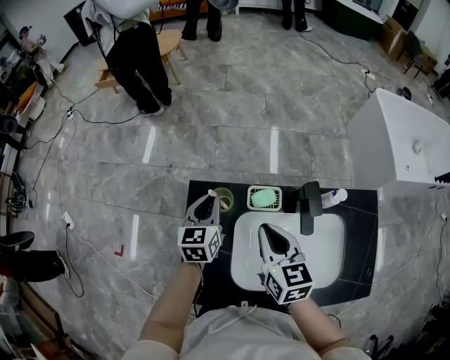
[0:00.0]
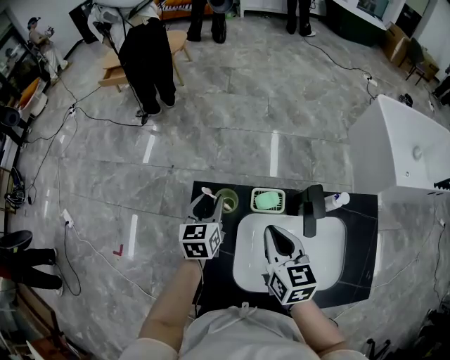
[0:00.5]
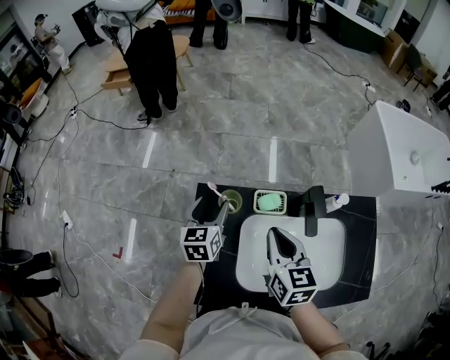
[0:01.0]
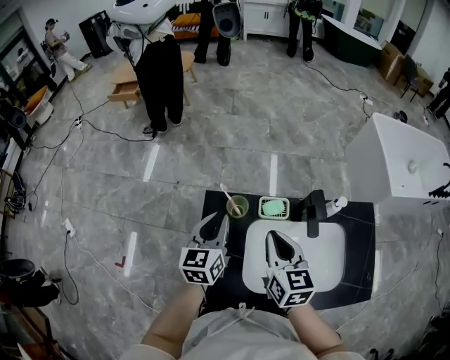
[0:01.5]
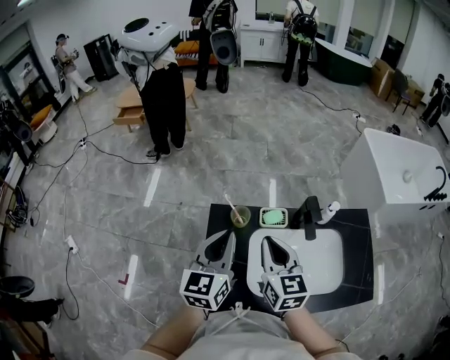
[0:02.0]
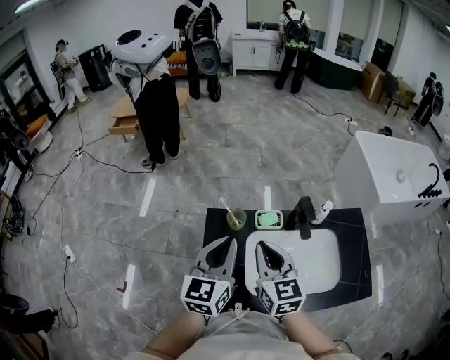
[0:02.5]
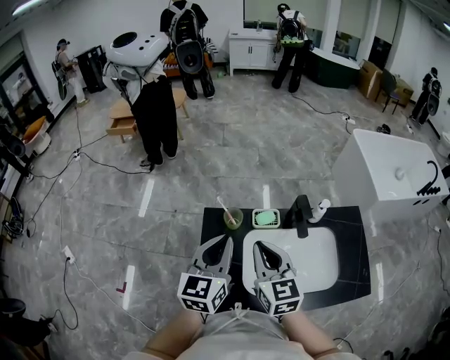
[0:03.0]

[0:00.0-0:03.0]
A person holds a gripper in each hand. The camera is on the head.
0.0 to 1.5 s: The left gripper travels upward and backward by approximately 10 cm, and opens, then closes once more.
1.5 to 3.0 s: The left gripper moves upward and backward, about 15 cm, while the right gripper moves upward, roughly 5 cm.

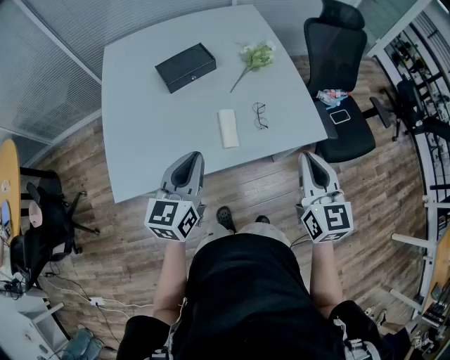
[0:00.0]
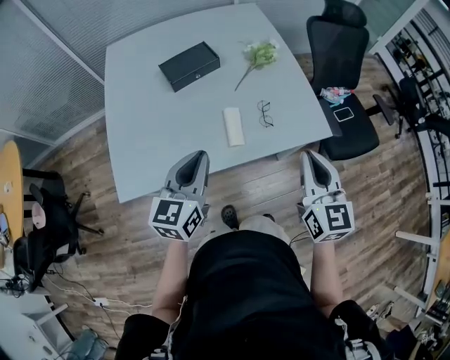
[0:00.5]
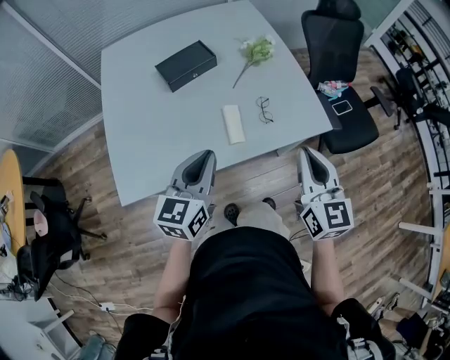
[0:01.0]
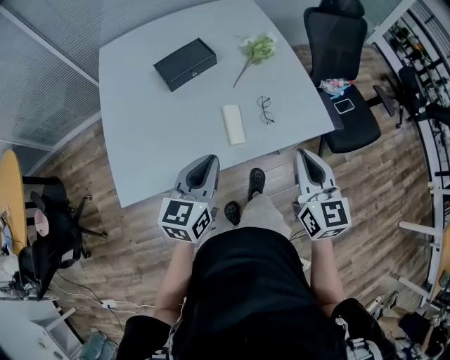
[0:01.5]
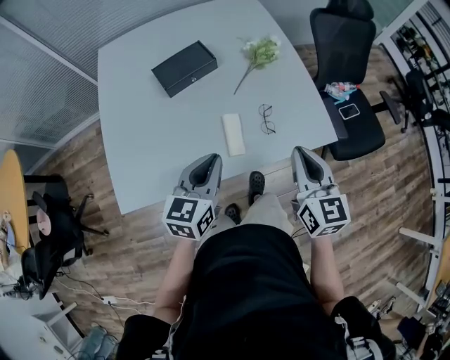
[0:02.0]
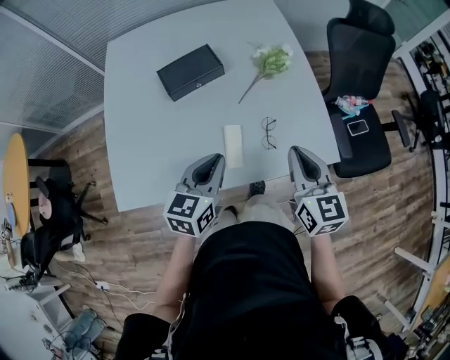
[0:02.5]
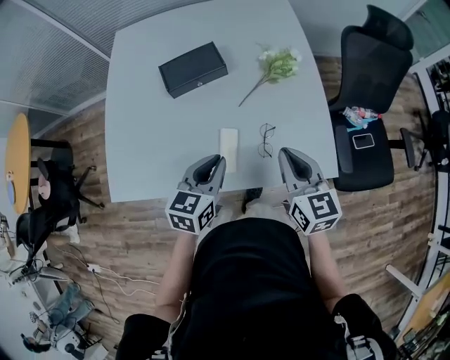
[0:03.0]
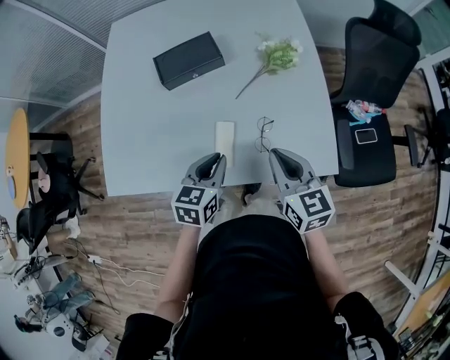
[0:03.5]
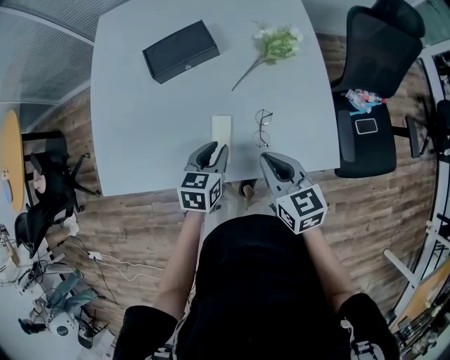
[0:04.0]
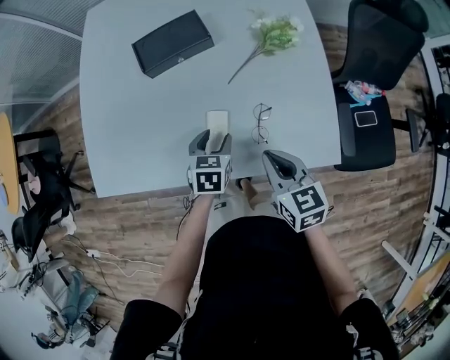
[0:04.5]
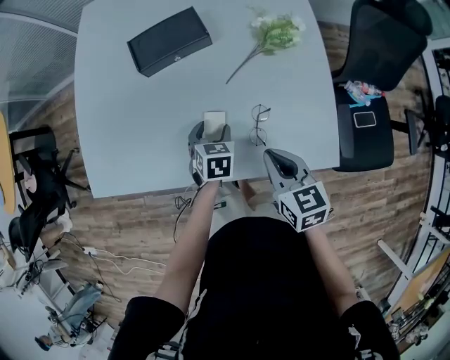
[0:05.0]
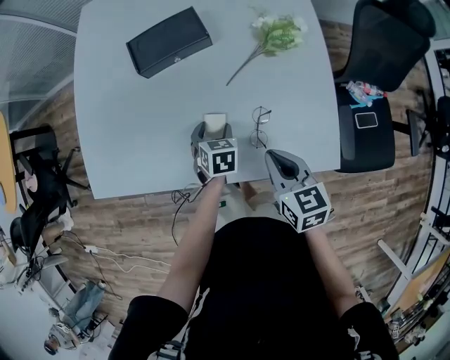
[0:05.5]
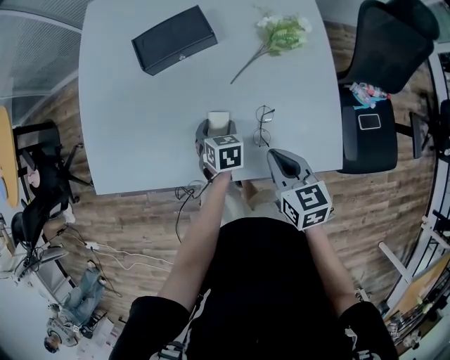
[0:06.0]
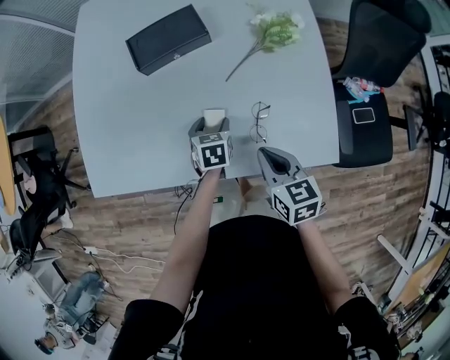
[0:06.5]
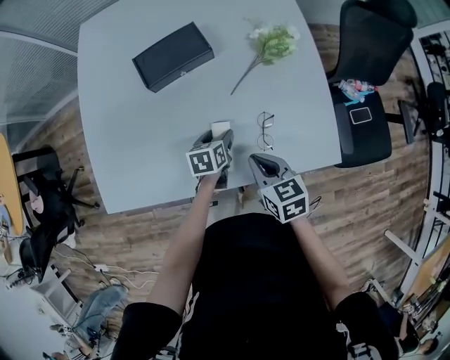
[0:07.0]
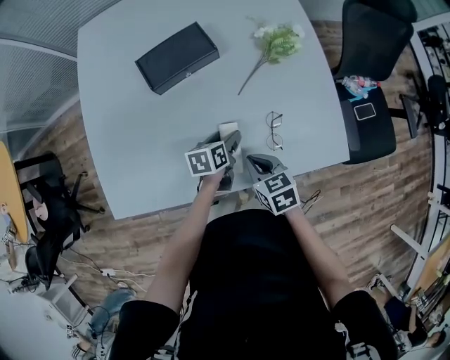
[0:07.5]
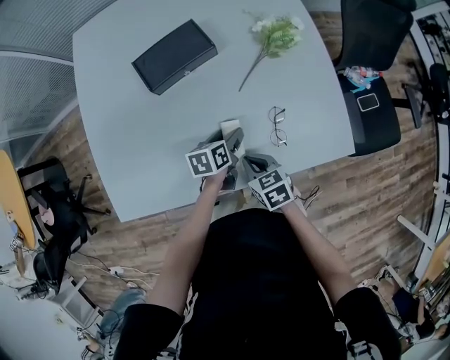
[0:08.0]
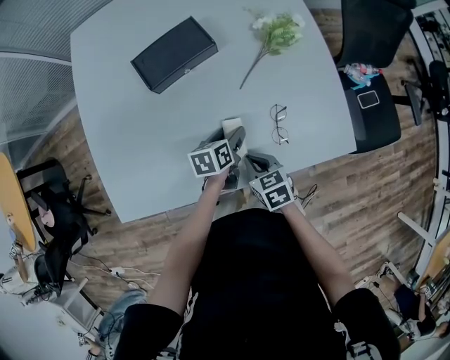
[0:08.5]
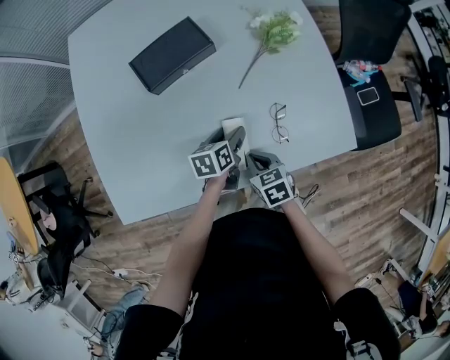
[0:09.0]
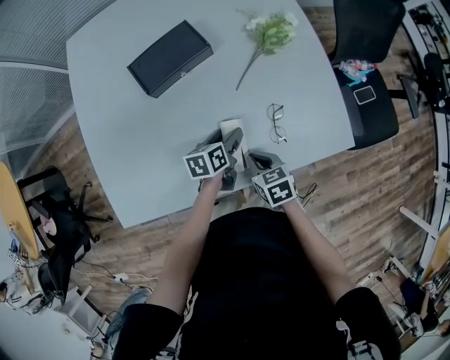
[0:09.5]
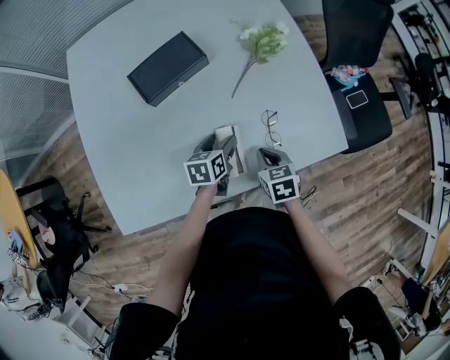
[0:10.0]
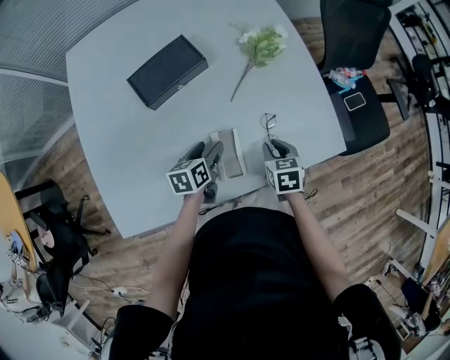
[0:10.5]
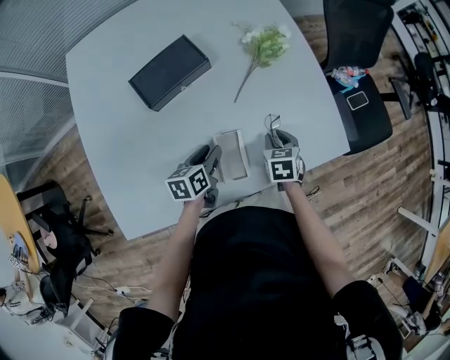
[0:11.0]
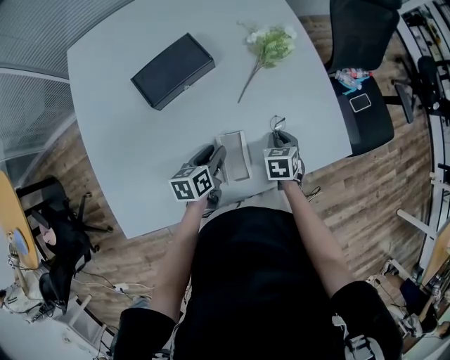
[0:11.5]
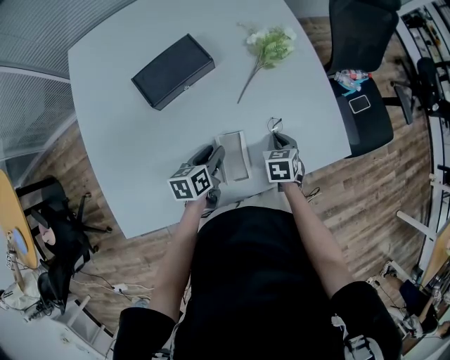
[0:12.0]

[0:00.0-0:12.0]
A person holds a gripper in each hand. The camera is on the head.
0.0 to 2.0 s: Both grippers travel together forward, some 5 cm.
2.0 to 4.0 s: The right gripper heads downward and forward, covering roughly 15 cm, and changes its angle by some 30 degrees. The left gripper travels downward, forward and to the right by roughly 20 cm, and changes its angle by roughly 20 degrees.
4.0 to 6.0 s: The left gripper travels downward and forward by about 15 cm, rotates about 30 degrees, and opens; the right gripper heads downward, covering approximately 5 cm.
6.0 to 8.0 s: The left gripper swivels some 40 degrees. The right gripper heads to the left and downward, covering some 15 cm.
8.0 to 10.0 s: The right gripper shifts some 5 cm to the right.
10.0 to 12.0 s: The right gripper travels forward by roughly 10 cm, and opens and closes again.

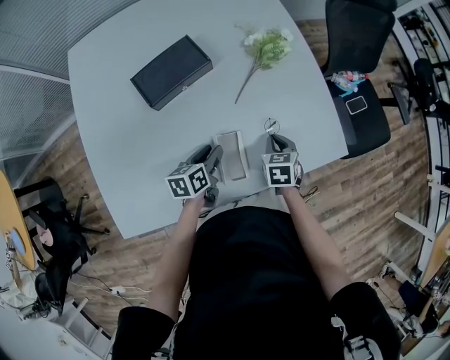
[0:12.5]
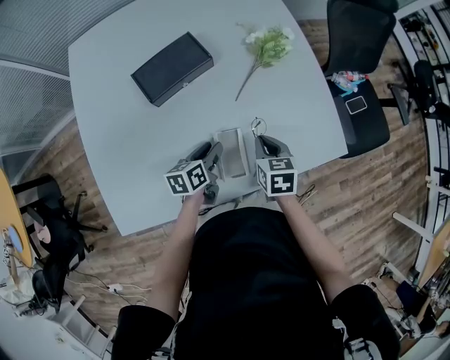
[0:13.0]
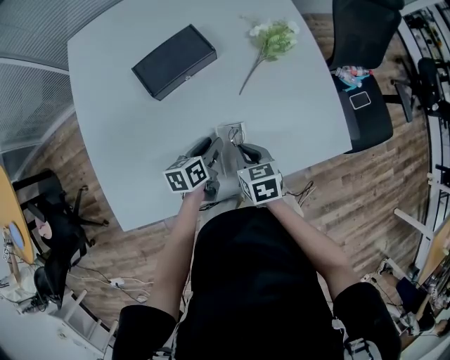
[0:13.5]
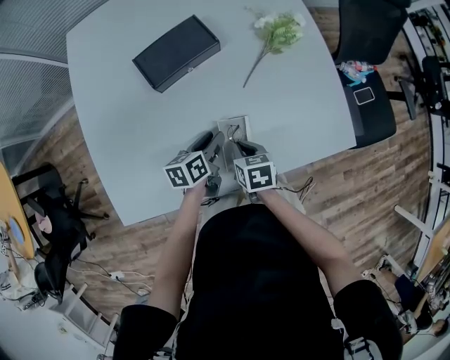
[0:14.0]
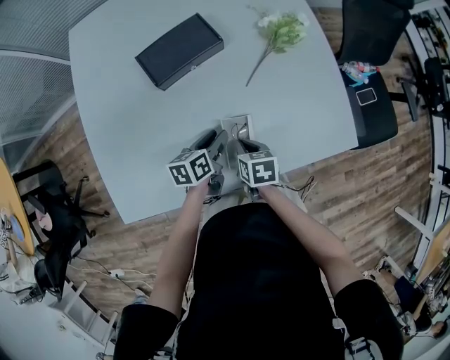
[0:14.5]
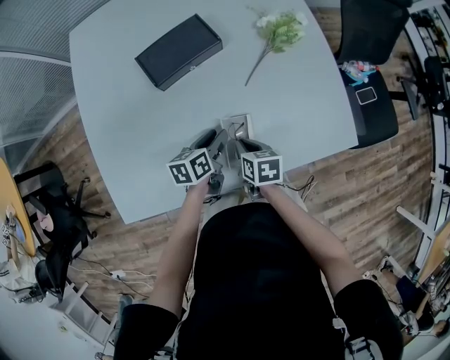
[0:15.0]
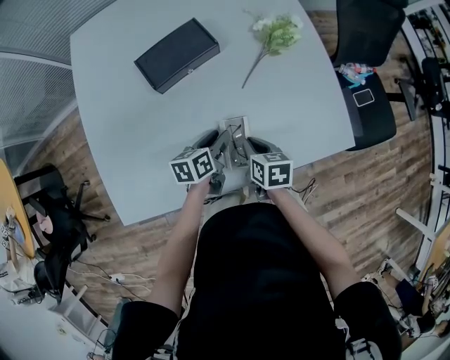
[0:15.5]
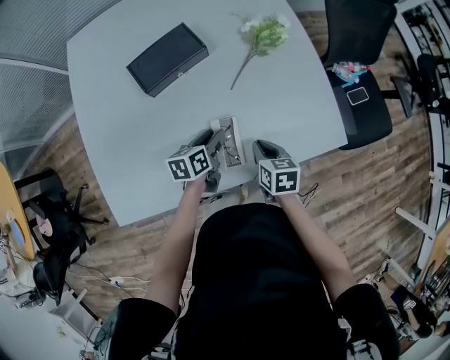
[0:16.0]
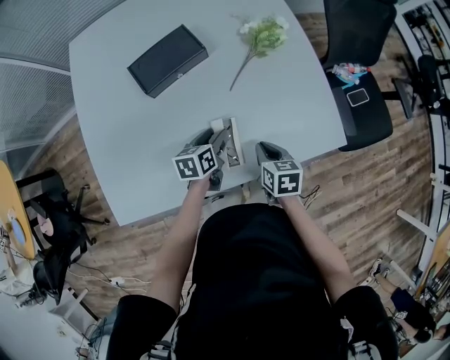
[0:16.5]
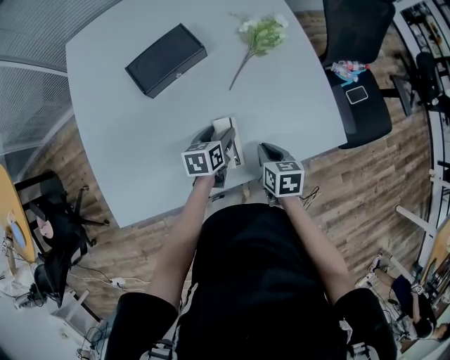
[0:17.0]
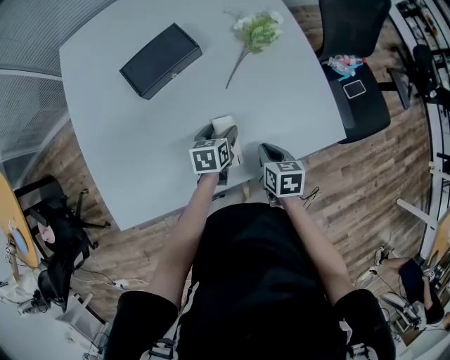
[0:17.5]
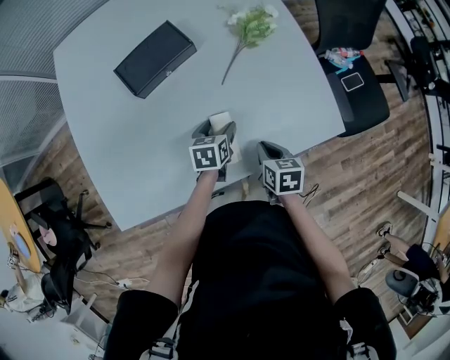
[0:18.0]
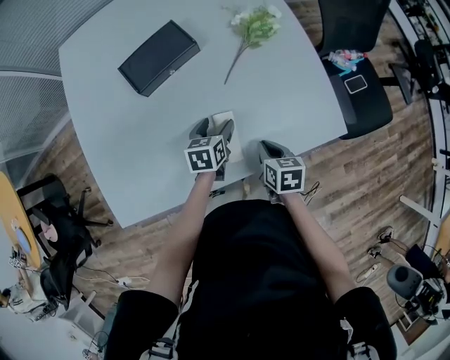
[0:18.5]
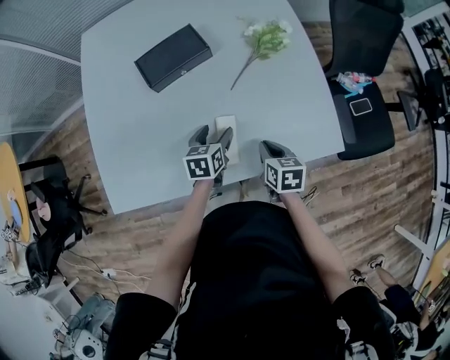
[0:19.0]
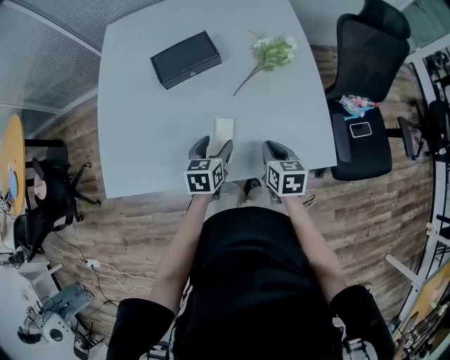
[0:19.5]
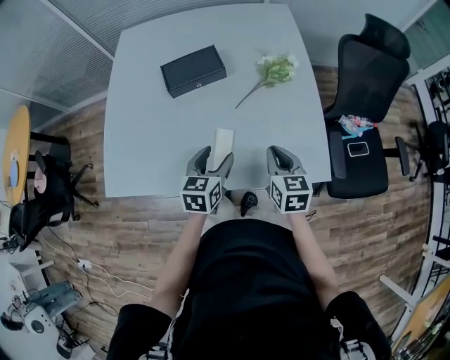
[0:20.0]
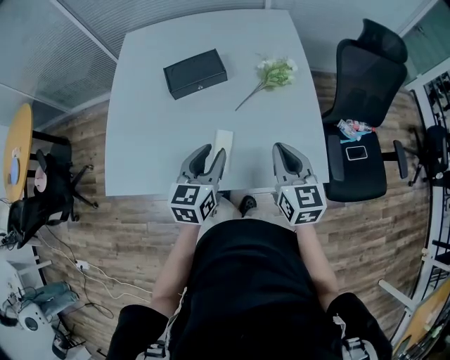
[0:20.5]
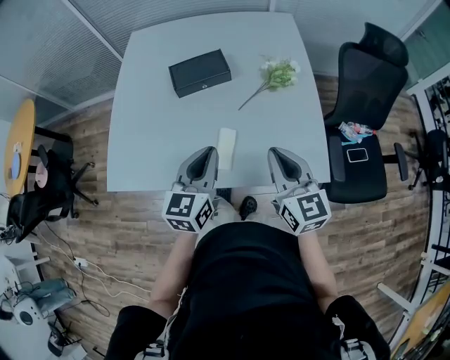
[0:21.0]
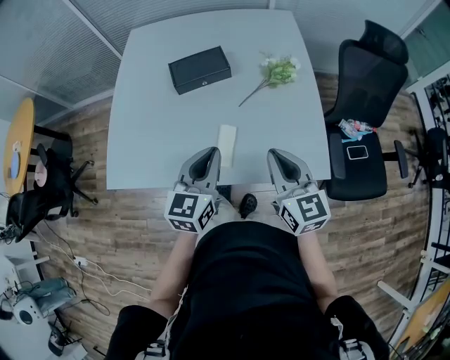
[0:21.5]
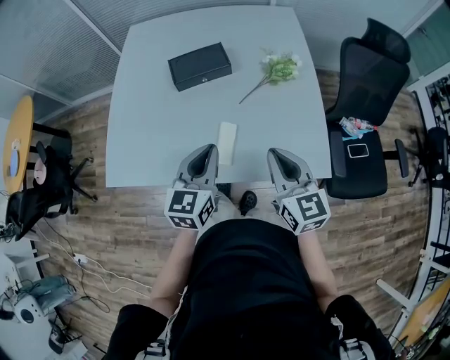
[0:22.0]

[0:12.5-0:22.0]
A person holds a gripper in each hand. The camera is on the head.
12.5 to 14.5 s: The right gripper is displaced to the left and backward by roughly 15 cm, and turns by roughly 20 degrees.
14.5 to 16.5 s: The right gripper is displaced to the right by approximately 10 cm; the left gripper is displaced to the right by approximately 5 cm.
16.5 to 18.0 s: The grippers make only small movements.
18.0 to 20.0 s: The right gripper shifts approximately 15 cm upward and to the right, and swivels some 30 degrees, while the left gripper heads upward and backward, covering some 20 cm, and rotates about 20 degrees.
20.0 to 22.0 s: The right gripper shifts about 10 cm upward and backward, and changes its angle by roughly 20 degrees; the left gripper travels upward by some 10 cm, and closes up.

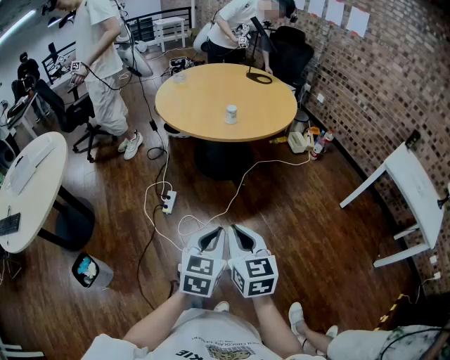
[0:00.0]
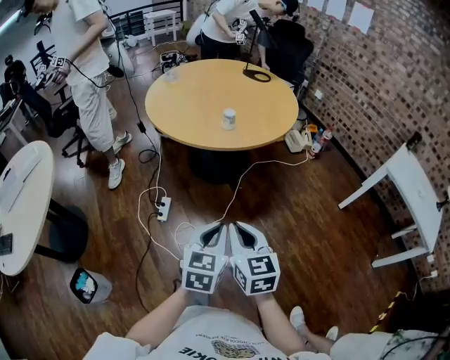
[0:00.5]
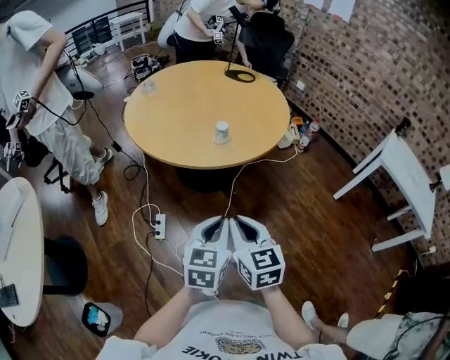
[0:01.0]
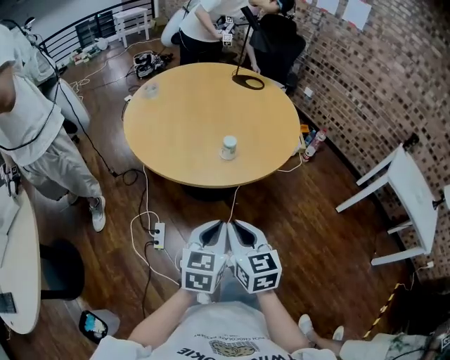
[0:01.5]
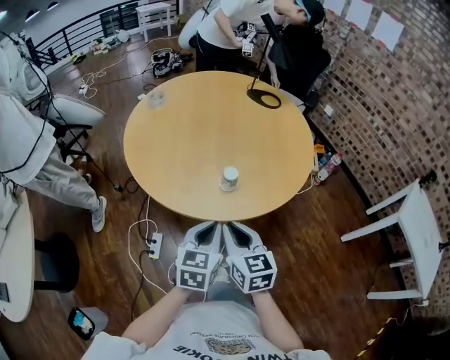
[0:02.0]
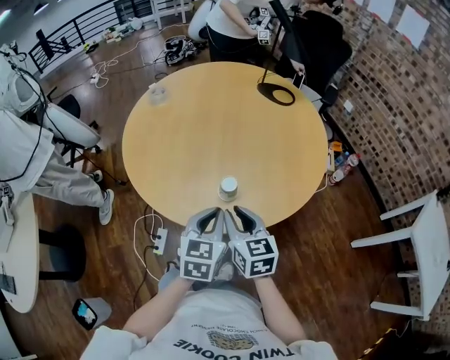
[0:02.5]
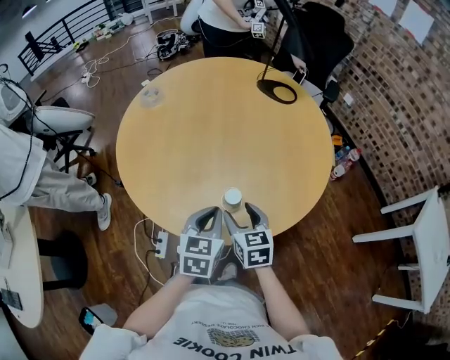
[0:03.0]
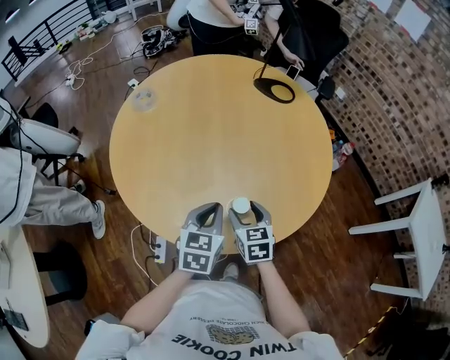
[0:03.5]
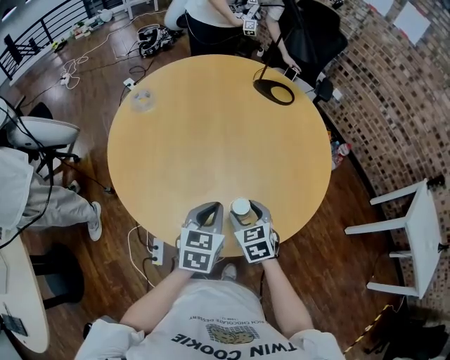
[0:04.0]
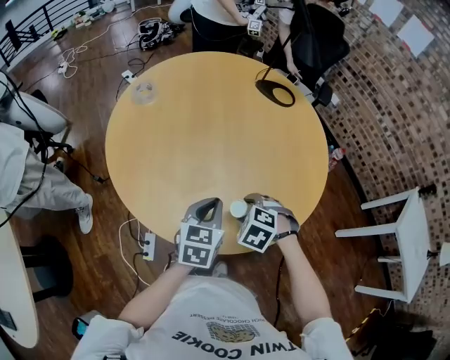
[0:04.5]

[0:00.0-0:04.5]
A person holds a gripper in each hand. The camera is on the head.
0.0 to 2.0 s: The two grippers travel together, forward, about 50 cm.
2.0 to 4.5 s: The right gripper moves some 25 cm, tilts its fingers about 50 degrees downward, and opens up. Meanwhile the left gripper ends up approximately 25 cm from where it was.
